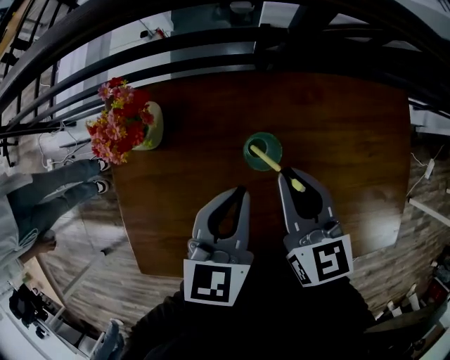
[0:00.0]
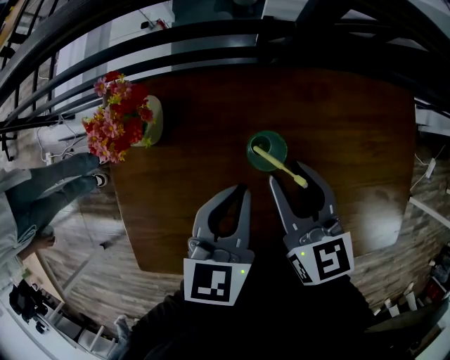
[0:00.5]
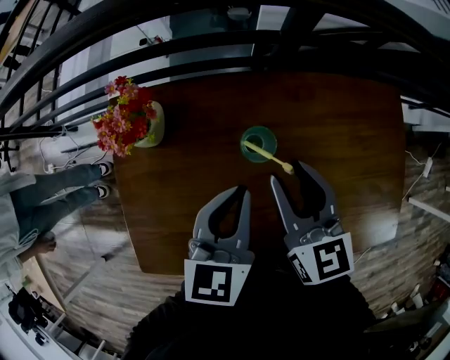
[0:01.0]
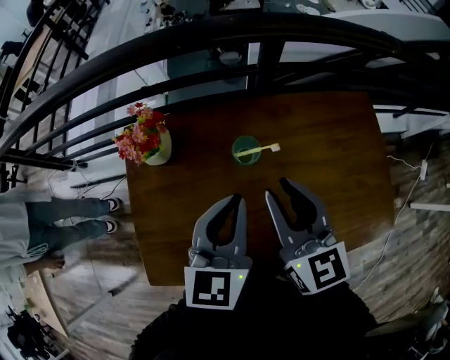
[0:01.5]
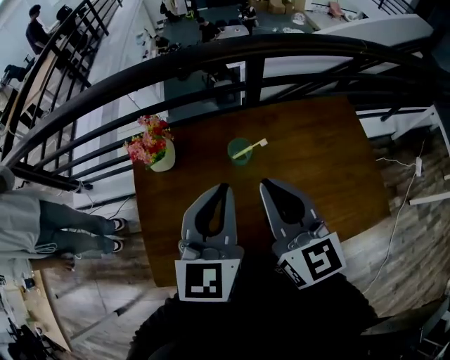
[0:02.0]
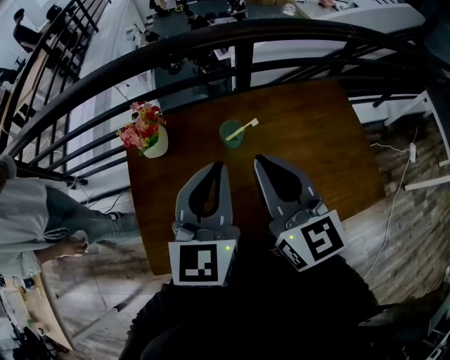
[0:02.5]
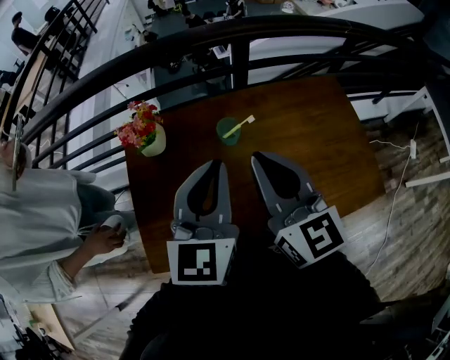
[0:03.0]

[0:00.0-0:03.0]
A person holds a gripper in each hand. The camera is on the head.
0:00.0 to 0:01.5: Both grippers travel together upward and backward, approximately 10 cm. The right gripper opens up.
0:01.5 to 0:03.0: The right gripper is displaced backward and upward by roughly 10 cm, and closes its fingers. The left gripper moves upward and backward, approximately 10 cm.

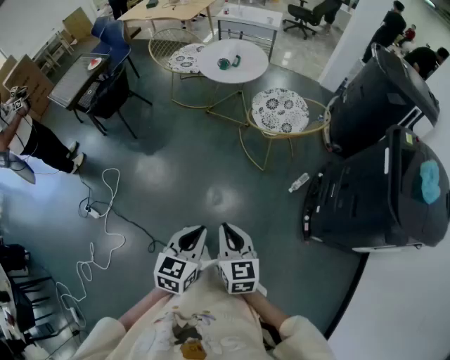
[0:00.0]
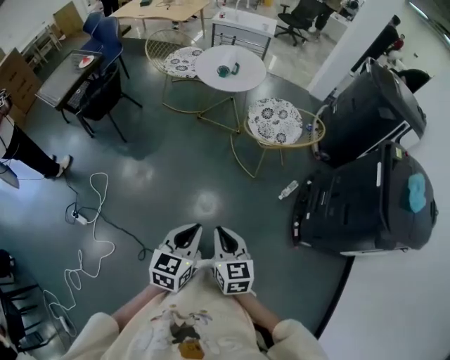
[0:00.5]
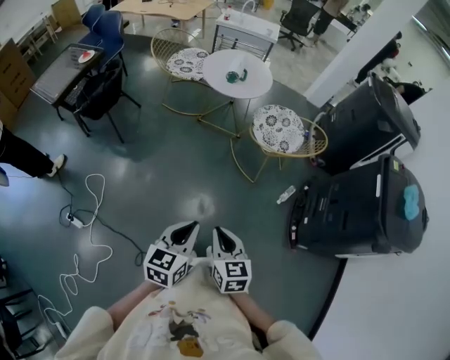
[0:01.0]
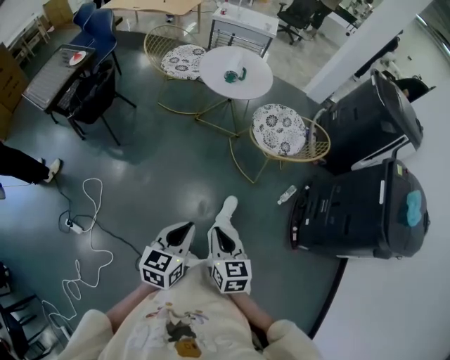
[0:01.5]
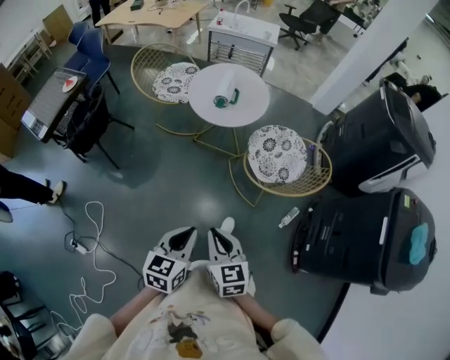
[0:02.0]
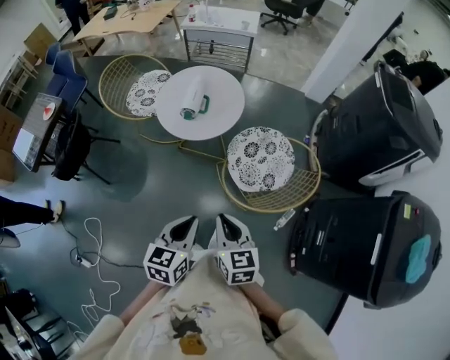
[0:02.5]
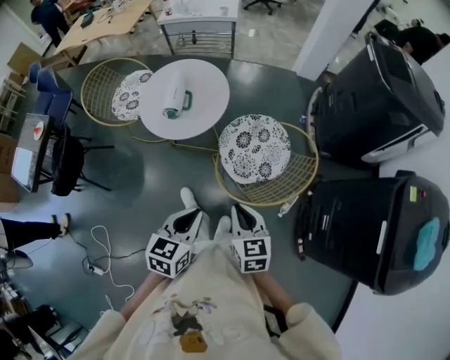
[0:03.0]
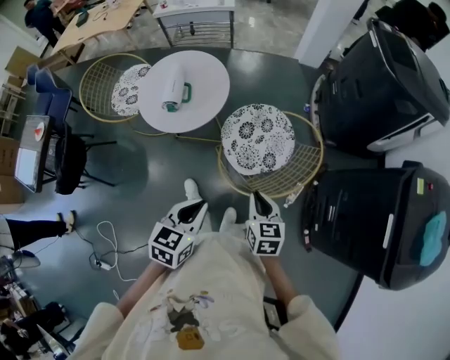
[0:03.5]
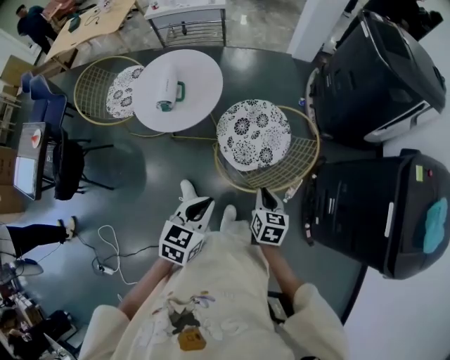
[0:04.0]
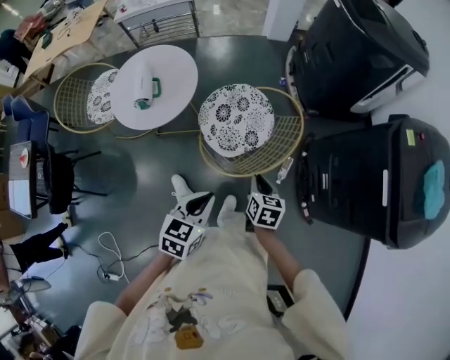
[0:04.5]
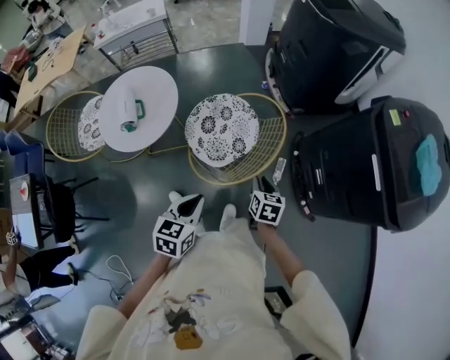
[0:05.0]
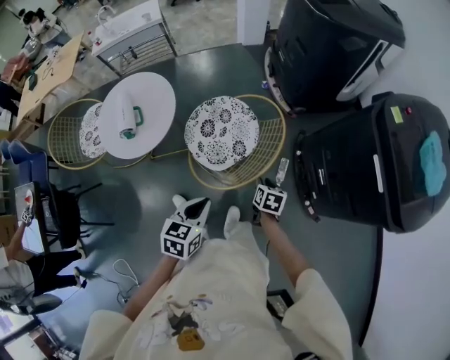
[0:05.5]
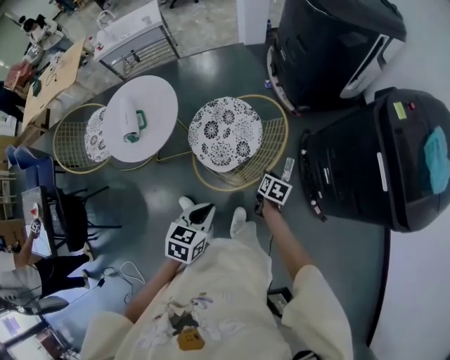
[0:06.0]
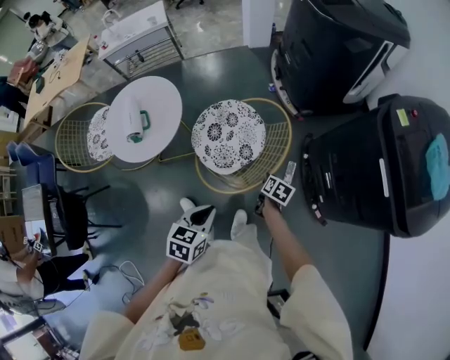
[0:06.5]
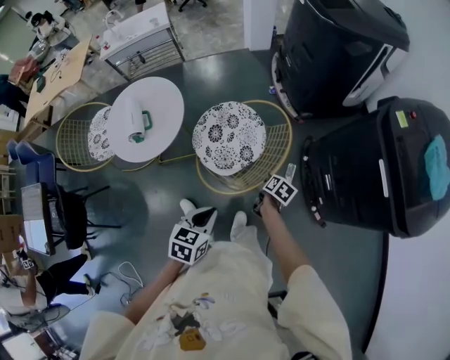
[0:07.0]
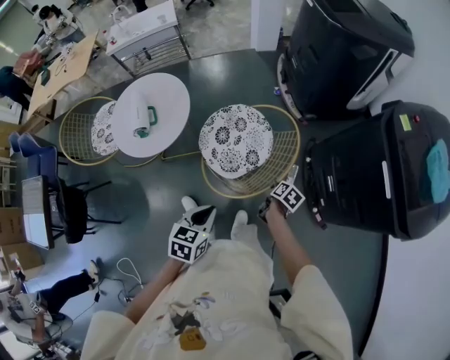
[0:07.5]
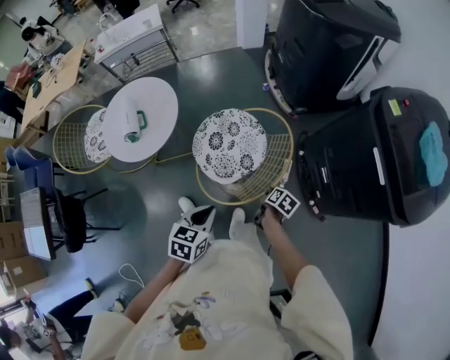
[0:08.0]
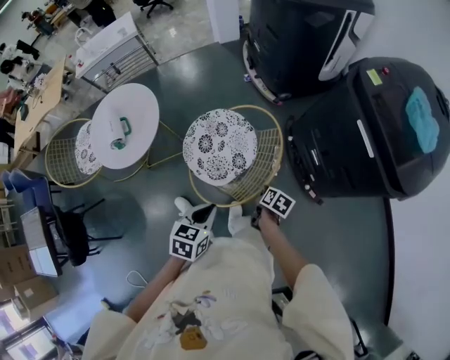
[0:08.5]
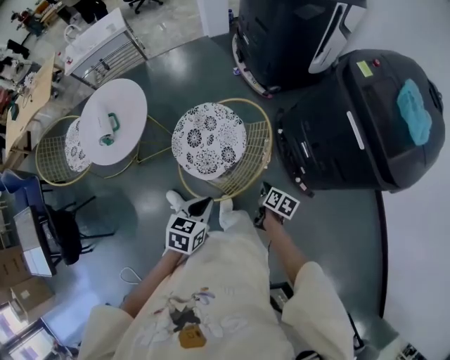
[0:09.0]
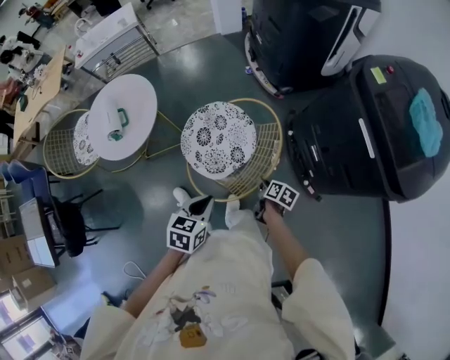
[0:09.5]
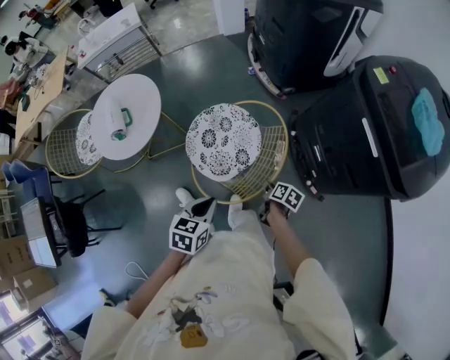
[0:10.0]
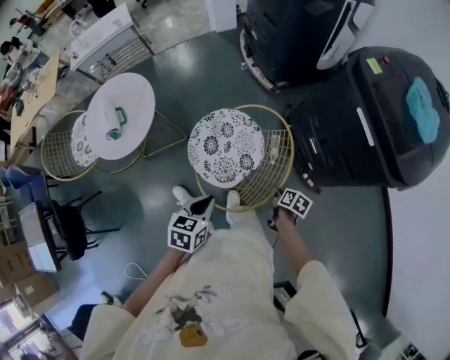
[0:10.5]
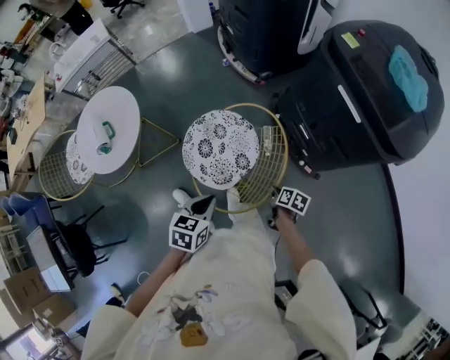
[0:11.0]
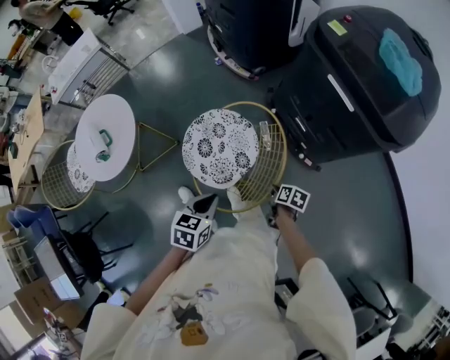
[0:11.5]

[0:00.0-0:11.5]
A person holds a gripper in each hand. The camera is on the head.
0:00.0 to 0:02.0: Both grippers move forward and to the left, approximately 35 cm.
0:02.0 to 0:04.0: The right gripper shifts some 40 cm to the right, forward and downward, and swivels roughly 40 degrees. The left gripper heads forward and to the right, covering approximately 35 cm, and rotates roughly 20 degrees.
0:04.0 to 0:06.0: The right gripper shifts roughly 20 cm to the right, downward and forward, and turns by about 40 degrees. The left gripper is displaced to the right and downward by some 10 cm.
0:06.0 to 0:07.5: The grippers move only a little.
0:07.5 to 0:09.5: The left gripper travels to the right by approximately 10 cm. Meanwhile the right gripper shifts approximately 10 cm backward and to the right.
0:09.5 to 0:11.5: The right gripper shifts some 15 cm backward and to the right, while the left gripper moves to the right, roughly 5 cm.

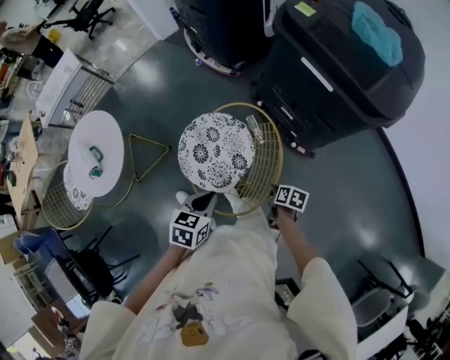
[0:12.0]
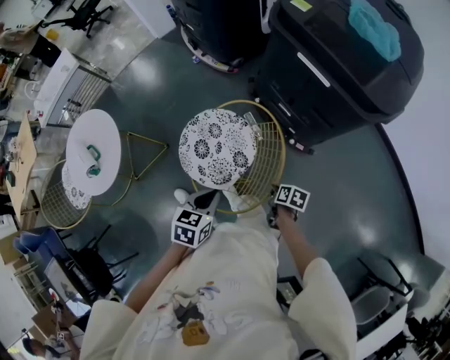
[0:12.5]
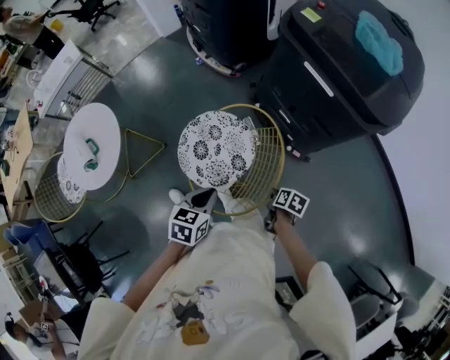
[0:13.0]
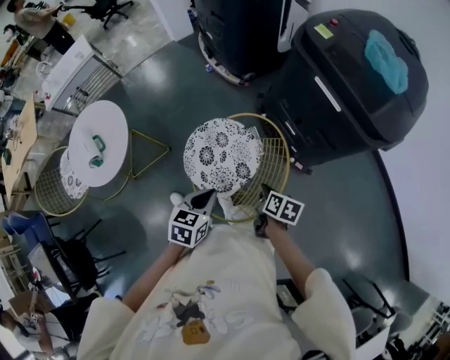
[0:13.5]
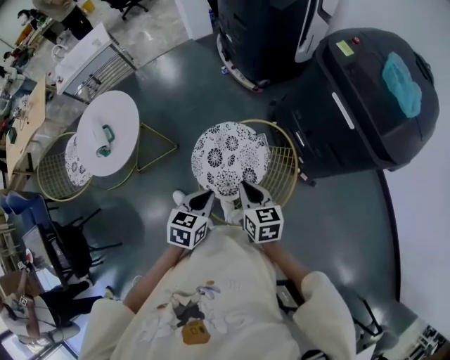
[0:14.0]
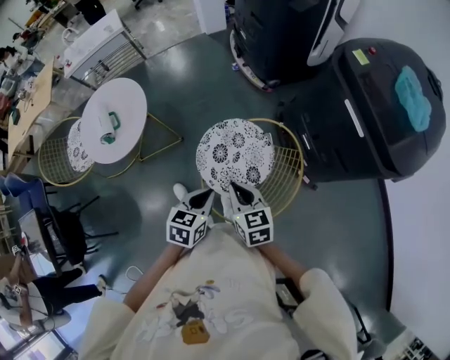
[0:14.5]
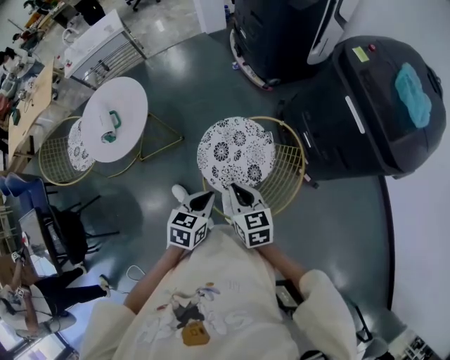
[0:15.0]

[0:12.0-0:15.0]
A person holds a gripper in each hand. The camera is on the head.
0:12.0 to 0:13.5: The right gripper travels upward and to the left by about 15 cm.
0:13.5 to 0:15.0: The right gripper moves to the left and upward, approximately 20 cm, and twists about 50 degrees counterclockwise, seen from behind, while the left gripper is displaced to the left by some 5 cm.

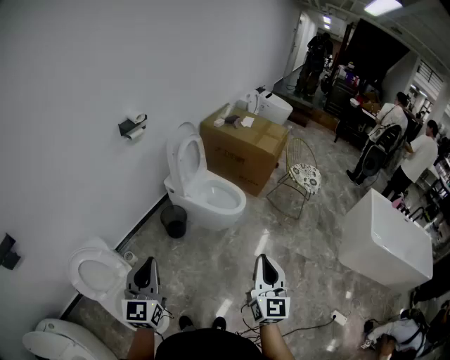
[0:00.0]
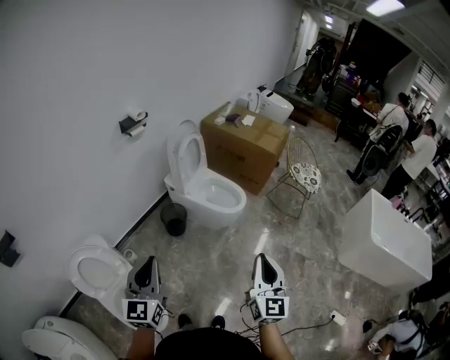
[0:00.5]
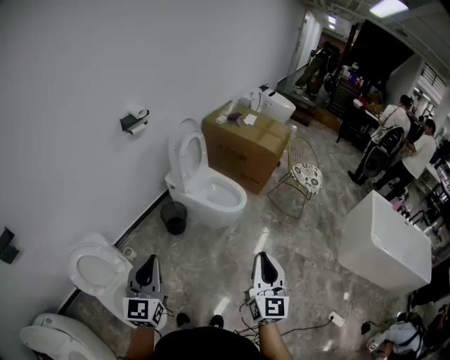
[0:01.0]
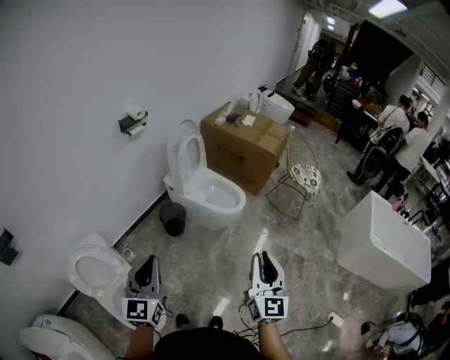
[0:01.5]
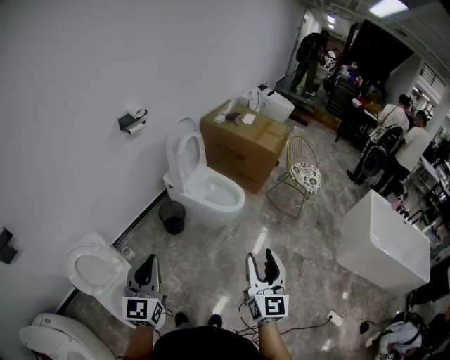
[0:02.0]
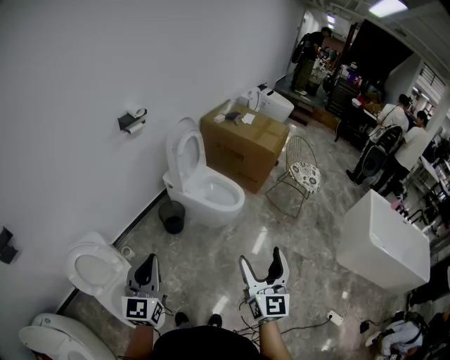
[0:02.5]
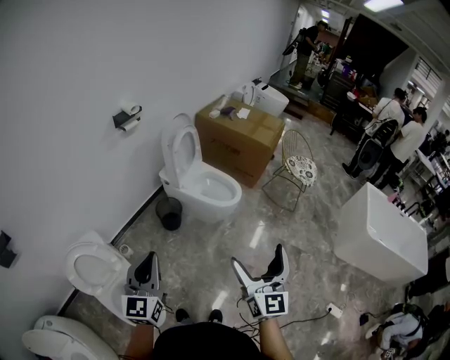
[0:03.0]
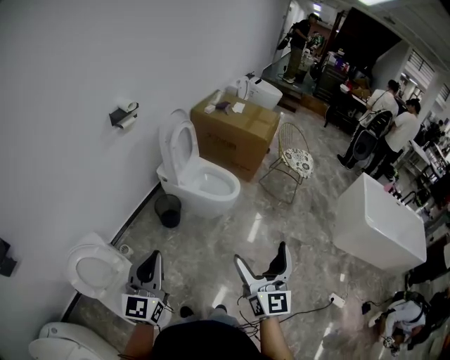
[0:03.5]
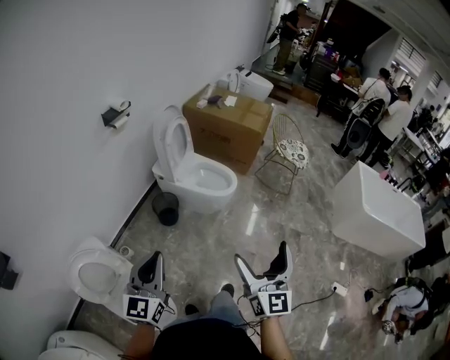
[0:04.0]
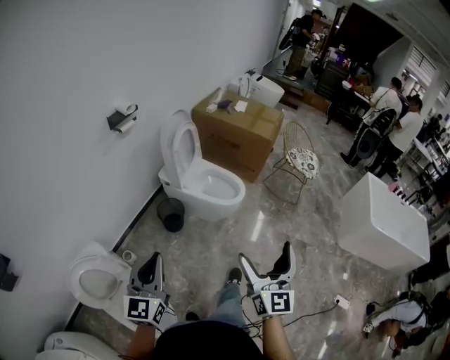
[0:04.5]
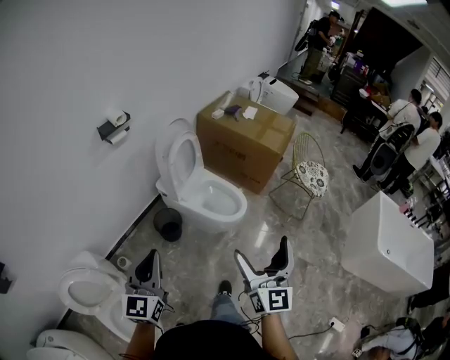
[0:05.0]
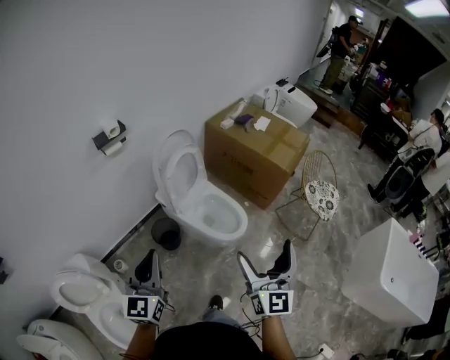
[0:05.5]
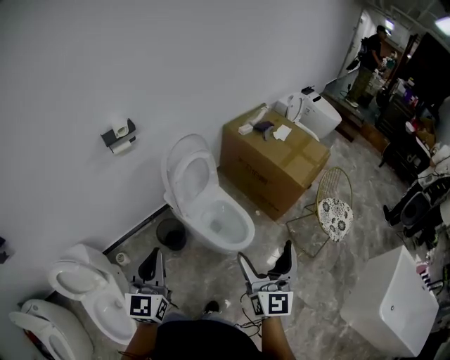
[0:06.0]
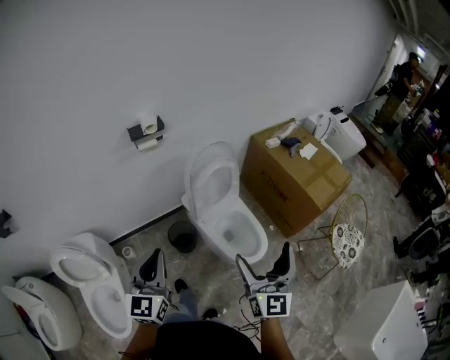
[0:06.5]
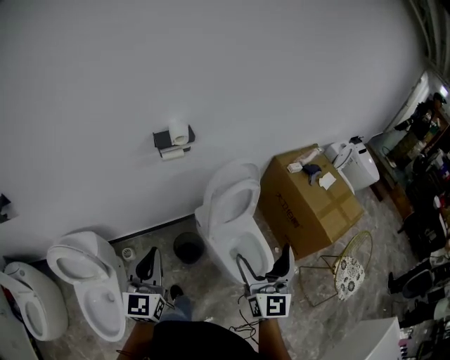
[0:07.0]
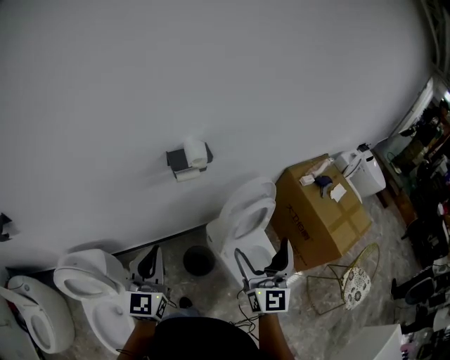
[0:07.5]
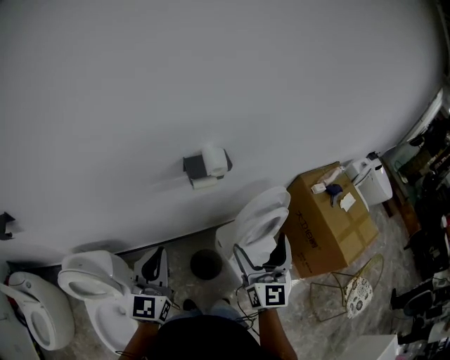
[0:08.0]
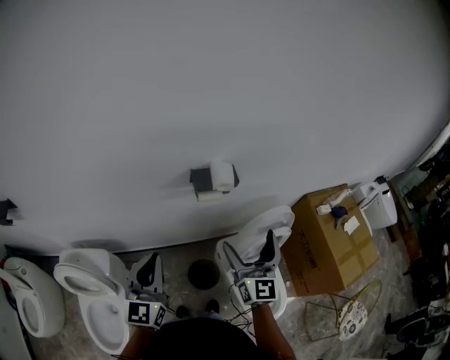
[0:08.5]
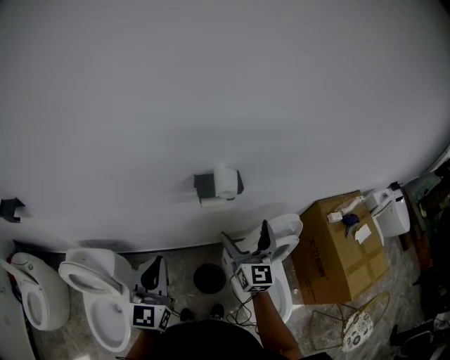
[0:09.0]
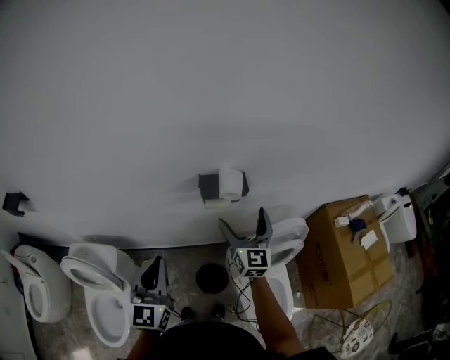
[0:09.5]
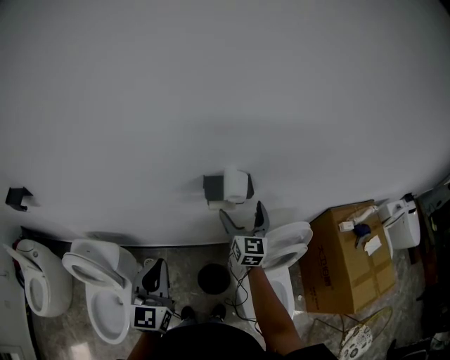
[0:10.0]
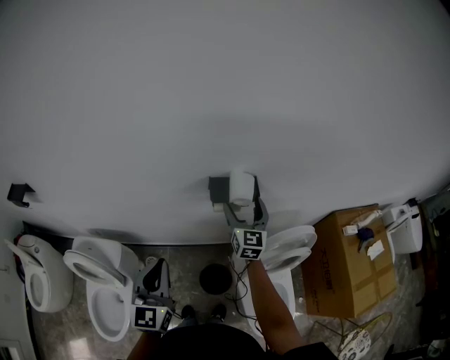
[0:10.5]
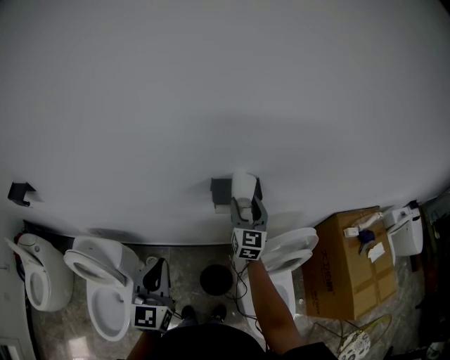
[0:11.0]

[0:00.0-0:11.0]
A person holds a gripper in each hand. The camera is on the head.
0:00.0 to 0:02.0: The grippers move only a little.
0:02.0 to 0:03.5: The right gripper changes place by about 5 cm, and opens its fingers.
0:03.5 to 0:05.5: The two grippers go roughly 35 cm forward.
0:05.5 to 0:07.5: The right gripper changes place by roughly 40 cm, and changes its angle by some 30 degrees. Meanwhile the left gripper changes place by approximately 30 cm, and swivels roughly 30 degrees.
0:07.5 to 0:09.0: The right gripper goes approximately 20 cm forward. Meanwhile the left gripper heads forward, covering approximately 5 cm.
0:09.0 to 0:11.0: The right gripper shifts approximately 15 cm forward, and closes.
